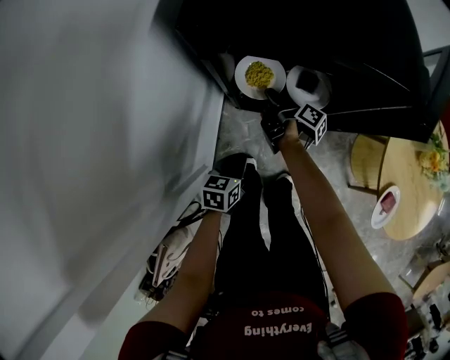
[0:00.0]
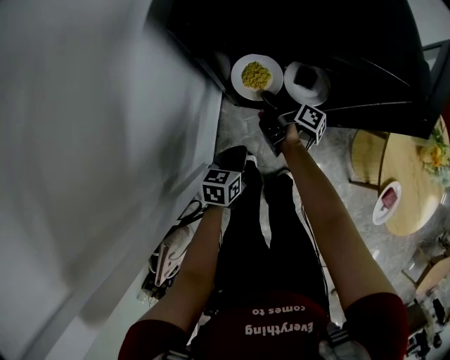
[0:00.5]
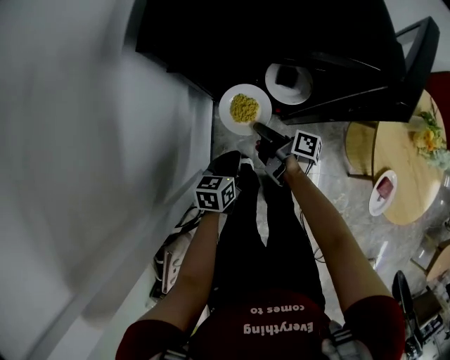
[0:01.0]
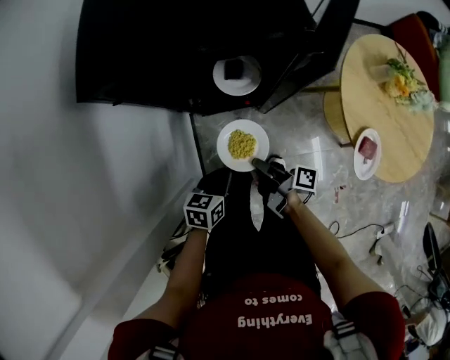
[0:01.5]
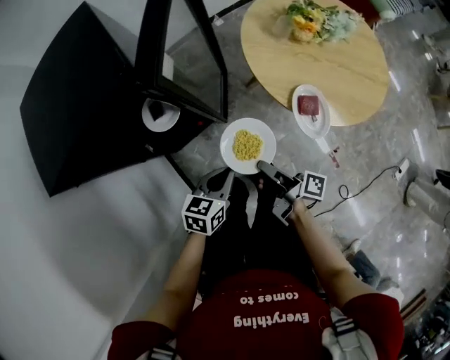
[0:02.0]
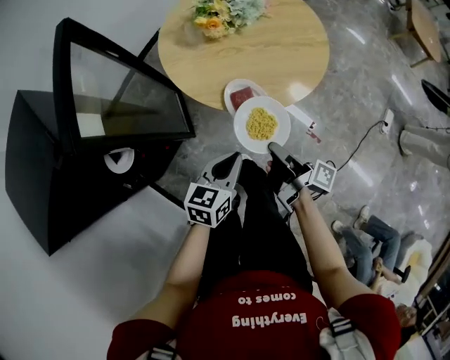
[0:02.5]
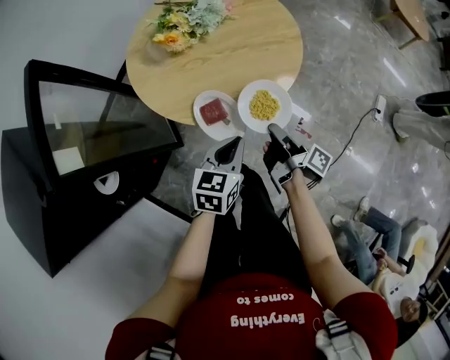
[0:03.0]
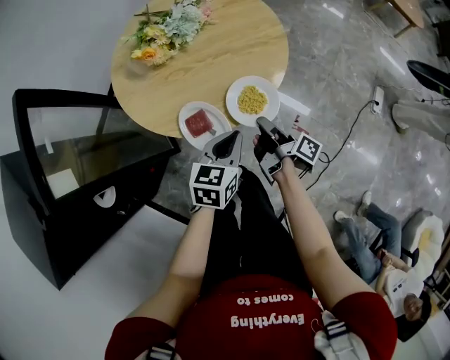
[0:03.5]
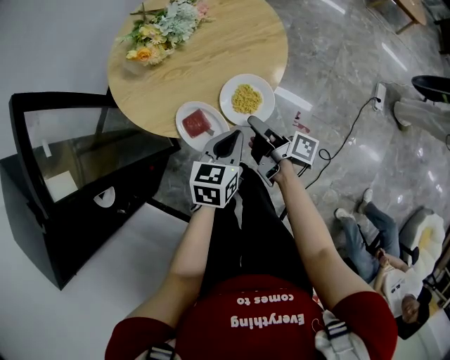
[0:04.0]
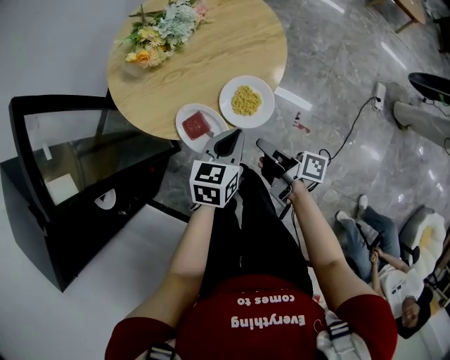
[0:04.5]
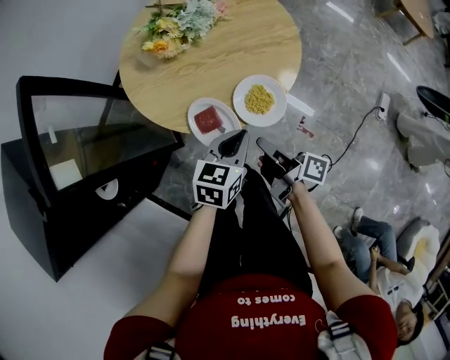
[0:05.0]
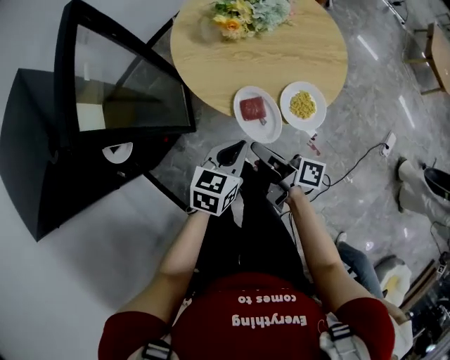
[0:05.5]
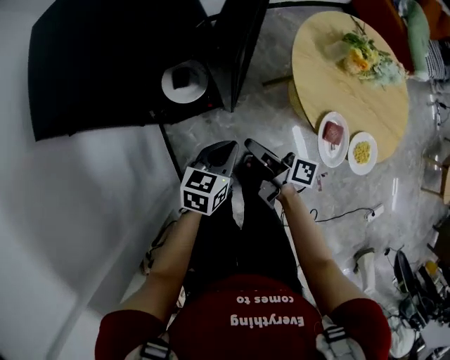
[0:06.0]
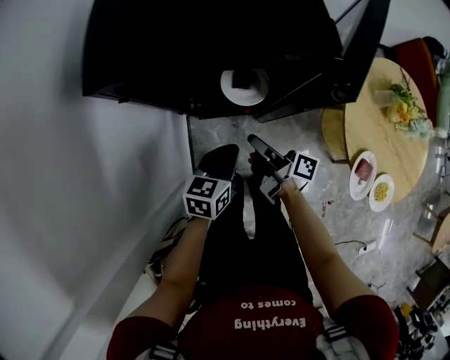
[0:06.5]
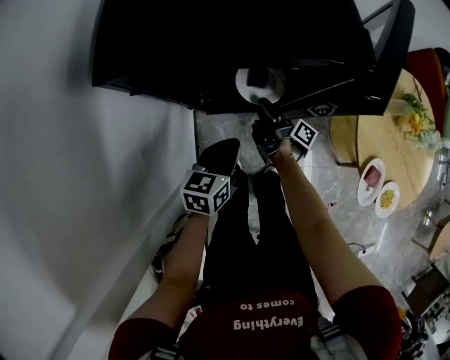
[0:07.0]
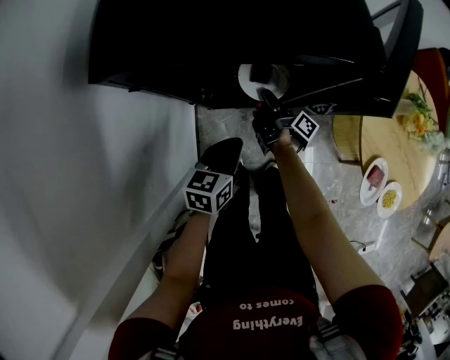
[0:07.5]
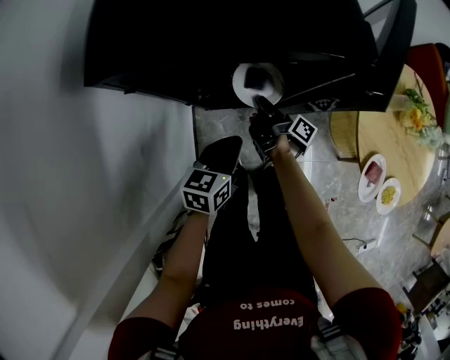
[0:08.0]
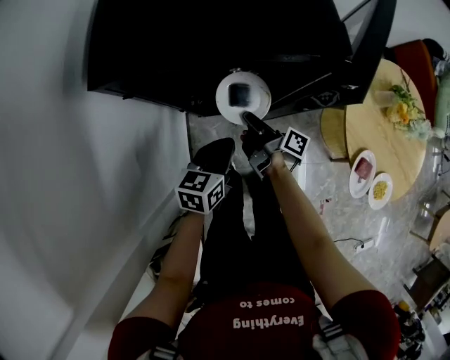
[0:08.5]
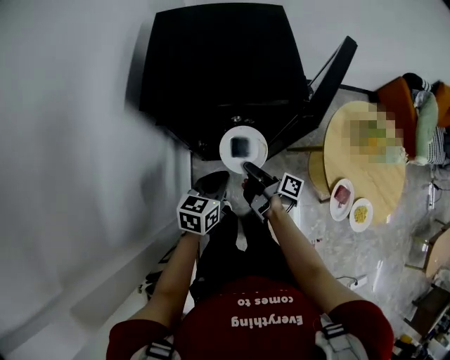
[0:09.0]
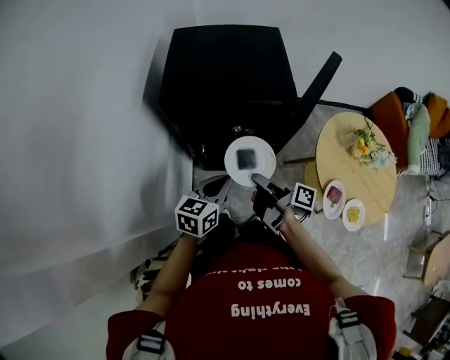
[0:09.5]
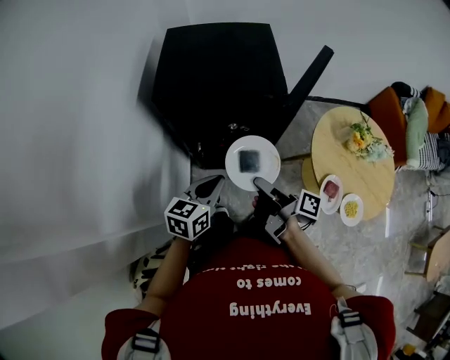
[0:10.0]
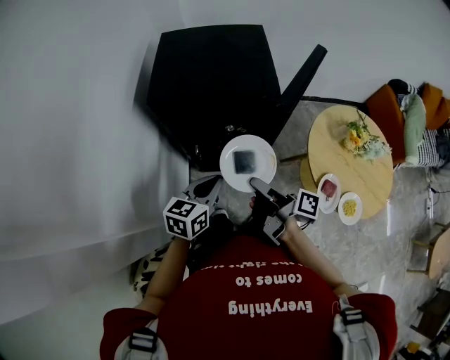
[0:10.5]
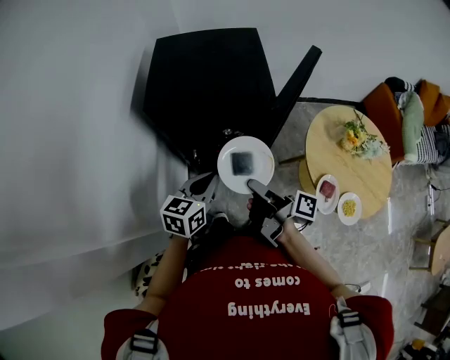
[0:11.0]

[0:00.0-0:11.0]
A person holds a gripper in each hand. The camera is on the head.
0:00.0 to 0:02.0: The left gripper ends up roughly 30 cm from where it was, and changes its angle by about 50 degrees.
0:02.0 to 0:03.5: The left gripper changes place by about 35 cm, and rotates roughly 30 degrees.
0:03.5 to 0:05.5: The left gripper changes place by roughly 15 cm.
0:05.5 to 0:07.5: The left gripper shifts by about 40 cm, and turns by approximately 50 degrees.
0:07.5 to 0:09.0: The left gripper goes some 10 cm upward.
0:09.0 to 0:11.0: The left gripper is displaced upward by roughly 10 cm.

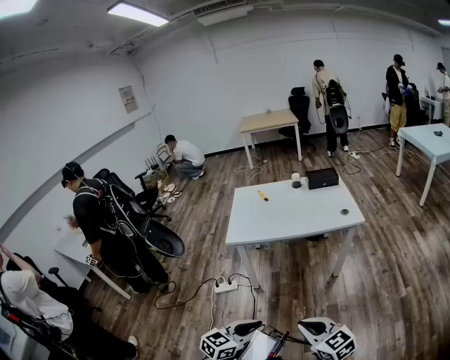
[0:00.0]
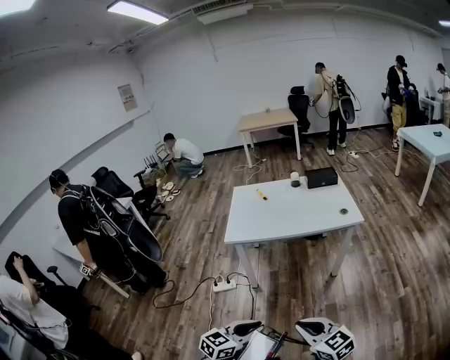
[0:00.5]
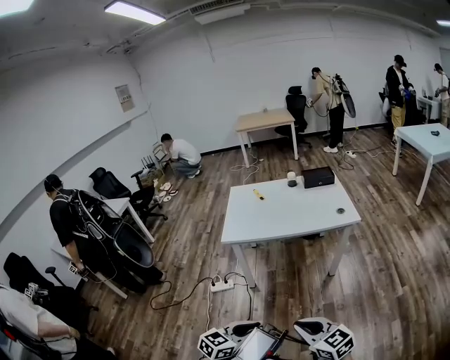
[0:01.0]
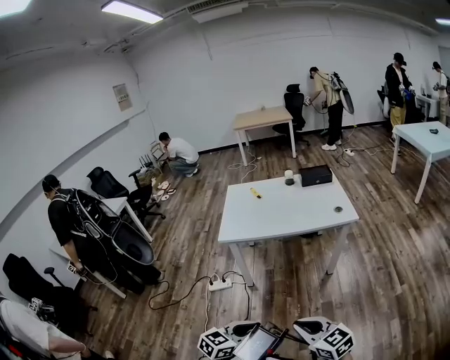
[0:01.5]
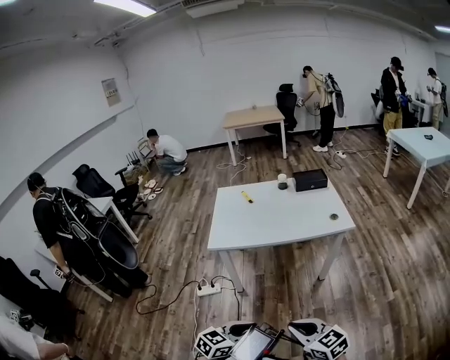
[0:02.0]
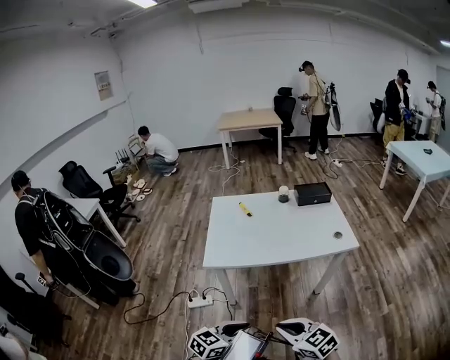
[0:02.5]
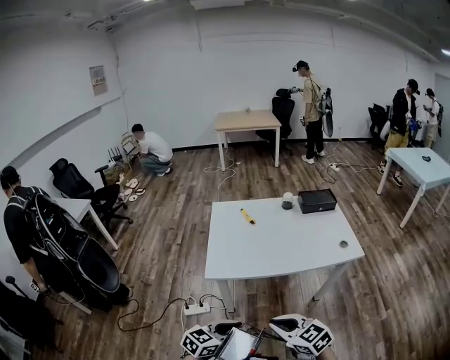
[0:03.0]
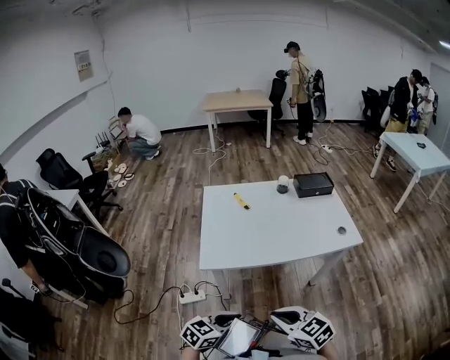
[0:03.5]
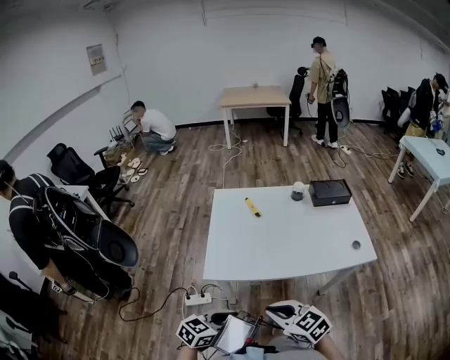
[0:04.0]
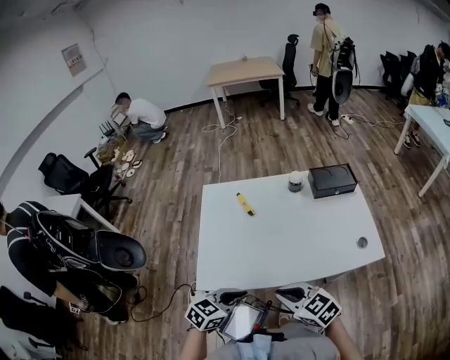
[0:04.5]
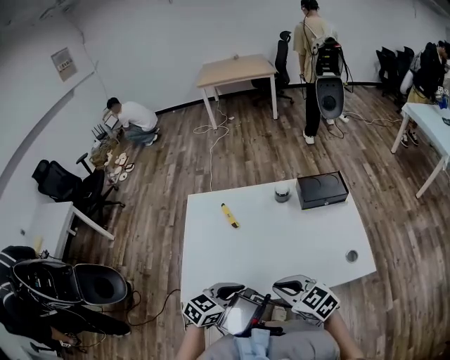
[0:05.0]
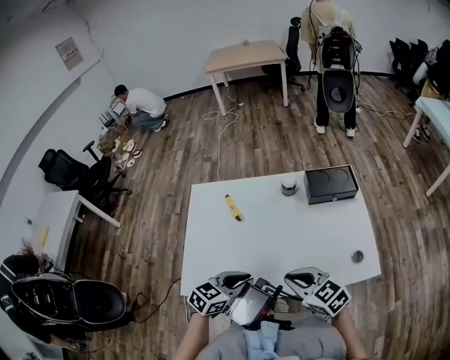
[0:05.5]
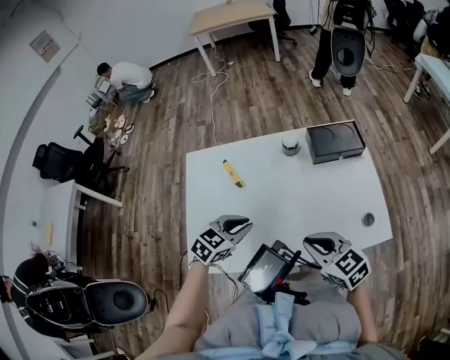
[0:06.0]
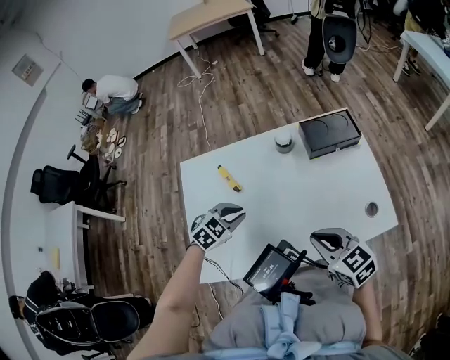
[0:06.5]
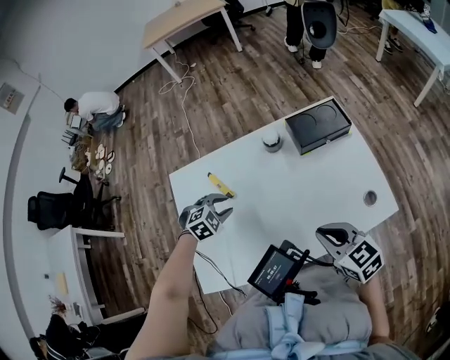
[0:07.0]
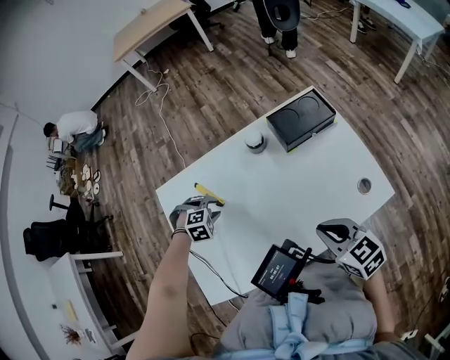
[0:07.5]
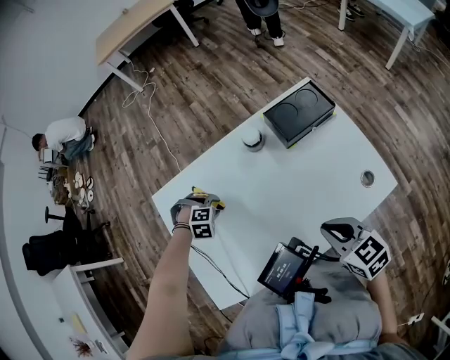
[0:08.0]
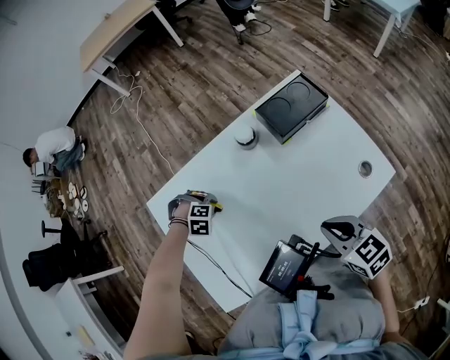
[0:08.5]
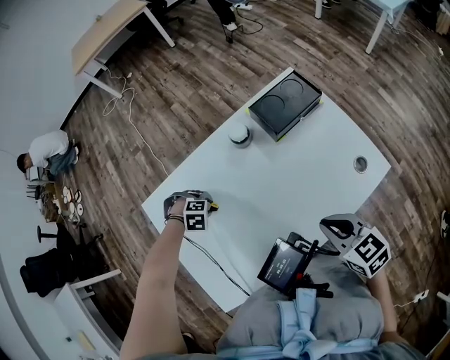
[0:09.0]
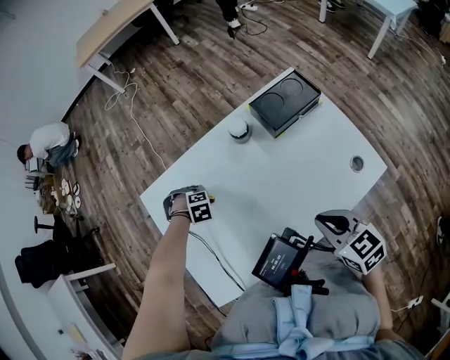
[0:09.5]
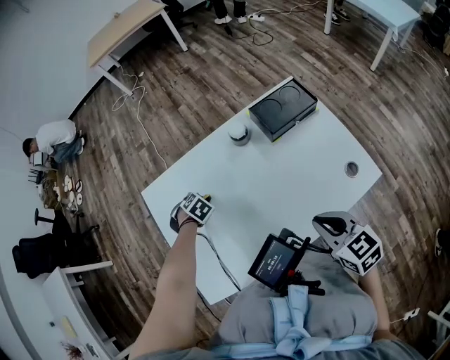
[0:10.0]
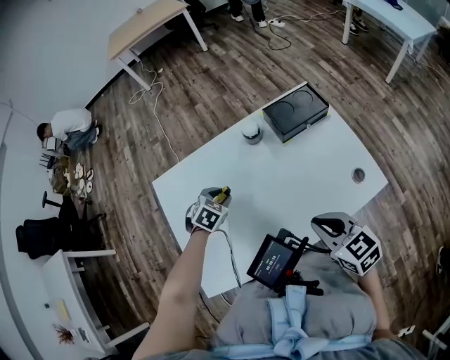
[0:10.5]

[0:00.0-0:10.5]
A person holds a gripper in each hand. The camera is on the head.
0:00.0 to 0:02.0: The grippers both shift forward by some 5 cm.
0:02.0 to 0:04.0: Both grippers travel together forward and to the left, about 35 cm.
0:04.0 to 0:06.5: The left gripper is displaced forward by approximately 40 cm, and changes its angle by about 40 degrees. Meanwhile the right gripper heads forward and to the right, covering some 35 cm.
0:06.5 to 0:08.5: The left gripper moves downward, about 15 cm, and angles its fingers downward, by approximately 40 degrees. Meanwhile the right gripper rotates some 20 degrees.
0:08.5 to 0:10.5: The left gripper heads upward, covering roughly 10 cm, and rolls counterclockwise, seen from behind, by roughly 60 degrees.

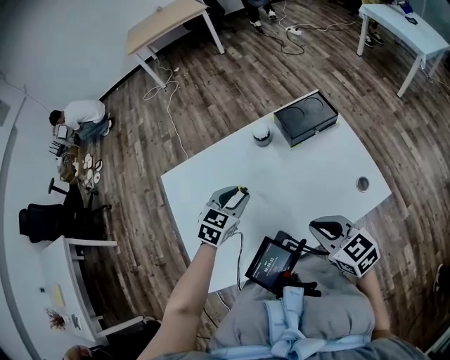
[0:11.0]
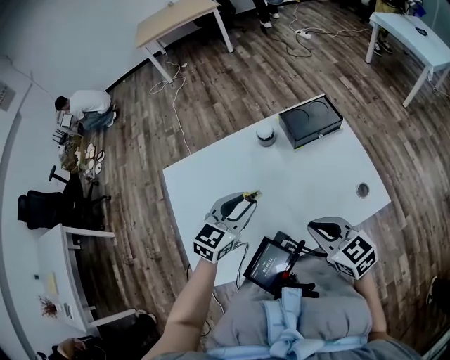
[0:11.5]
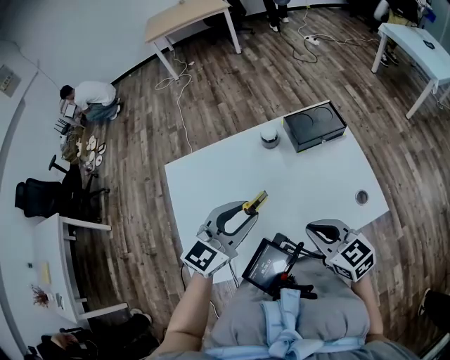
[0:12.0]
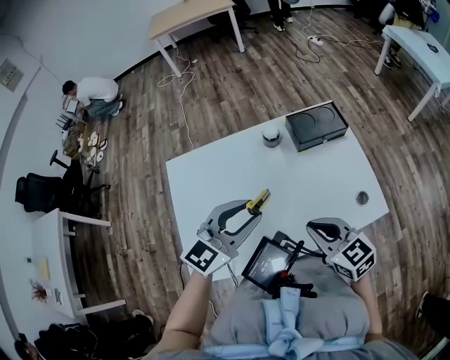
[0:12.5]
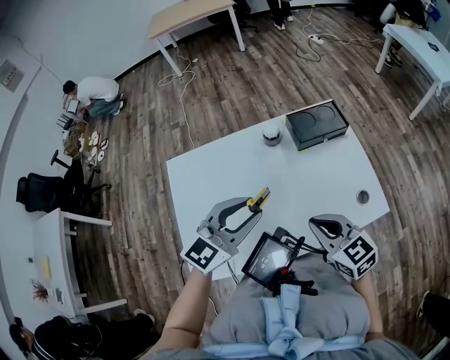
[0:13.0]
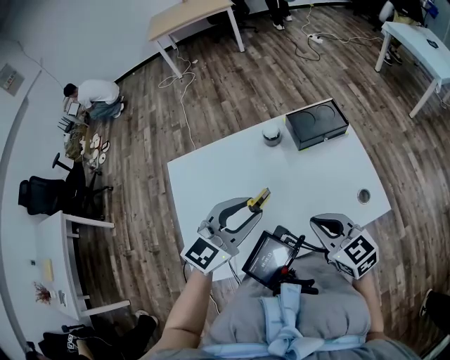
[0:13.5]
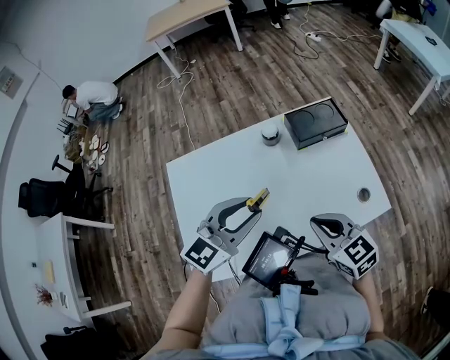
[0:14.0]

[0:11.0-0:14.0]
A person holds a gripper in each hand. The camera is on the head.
0:11.0 to 0:12.5: The left gripper heads upward and backward, covering about 15 cm, and turns by approximately 30 degrees.
0:12.5 to 0:14.0: The two grippers keep their place.

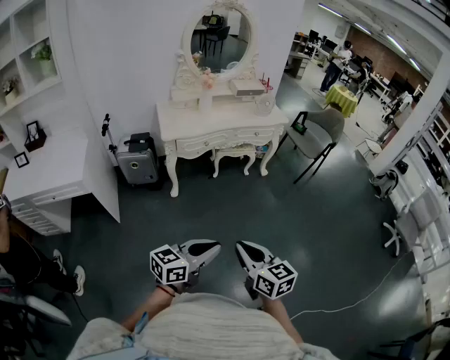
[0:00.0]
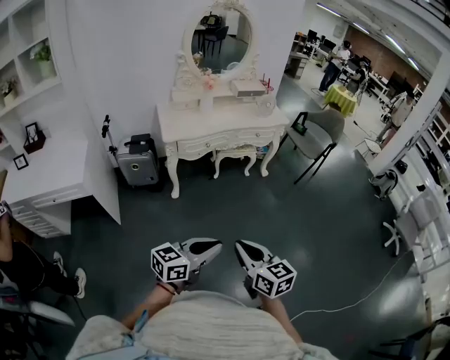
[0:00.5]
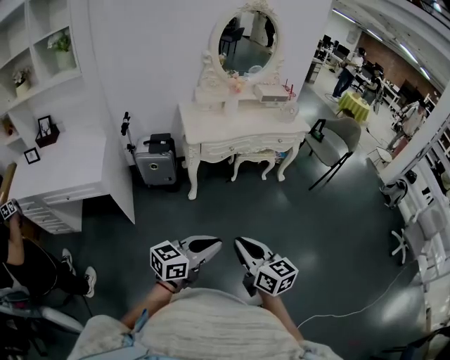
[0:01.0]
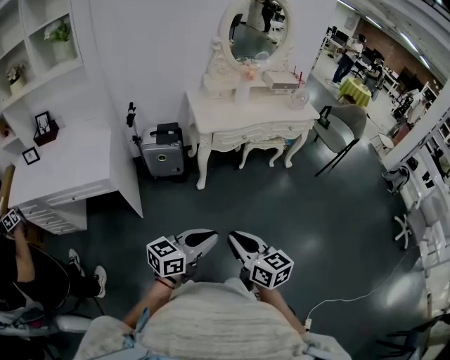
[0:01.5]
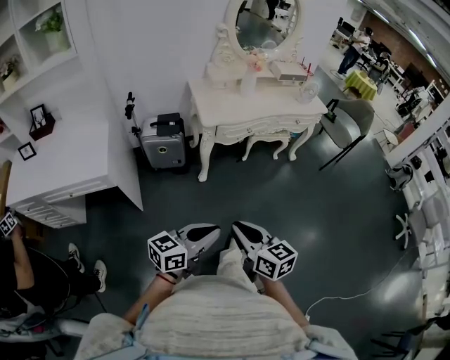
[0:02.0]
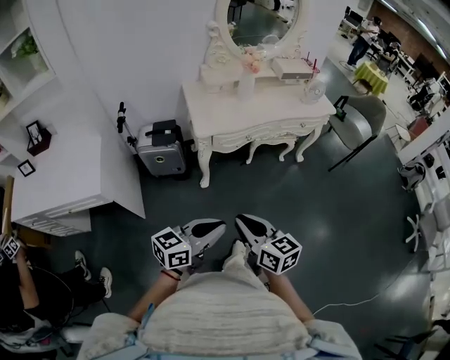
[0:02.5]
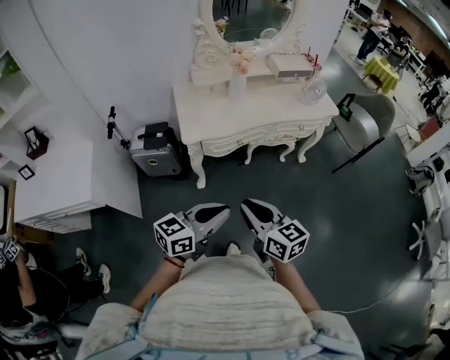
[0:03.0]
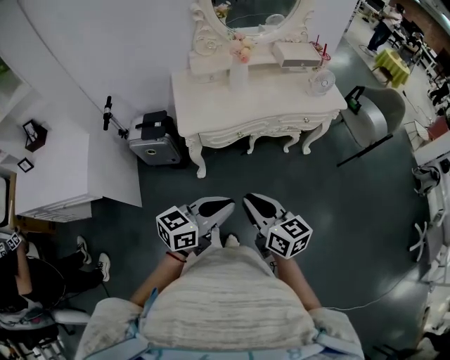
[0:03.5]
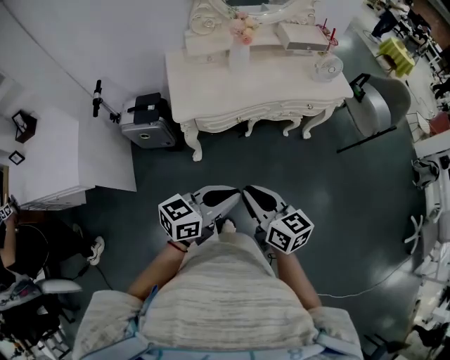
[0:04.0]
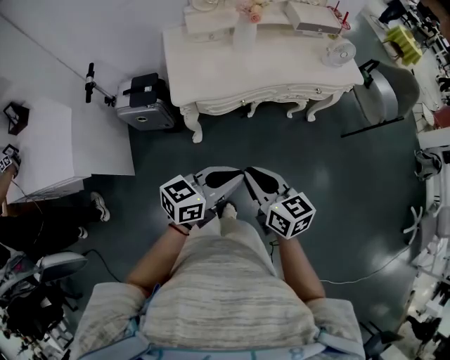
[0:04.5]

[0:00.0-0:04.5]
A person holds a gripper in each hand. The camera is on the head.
0:00.0 to 0:02.0: The grippers both shift to the left by approximately 30 cm.
0:02.0 to 0:04.5: The left gripper heads forward and to the right, covering about 40 cm. The right gripper goes roughly 40 cm forward.
